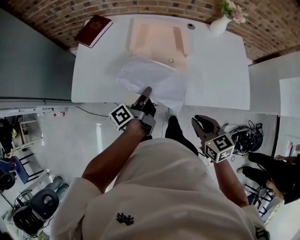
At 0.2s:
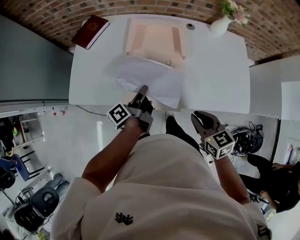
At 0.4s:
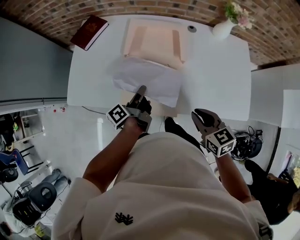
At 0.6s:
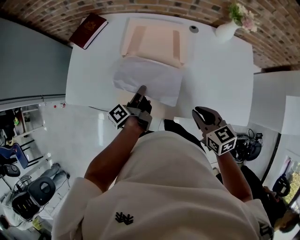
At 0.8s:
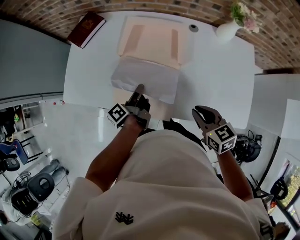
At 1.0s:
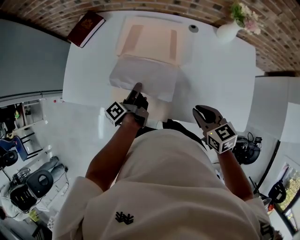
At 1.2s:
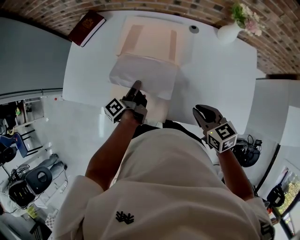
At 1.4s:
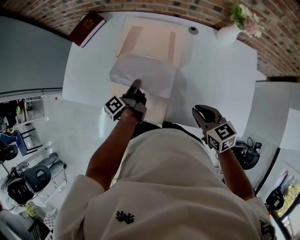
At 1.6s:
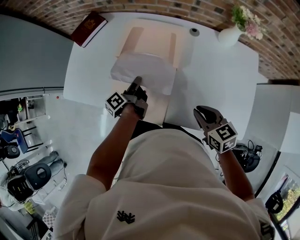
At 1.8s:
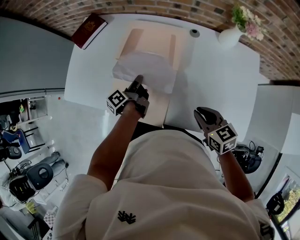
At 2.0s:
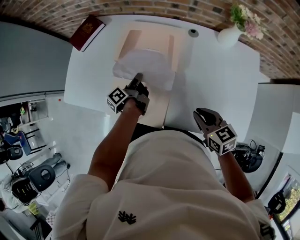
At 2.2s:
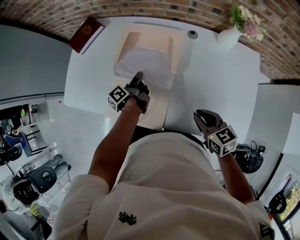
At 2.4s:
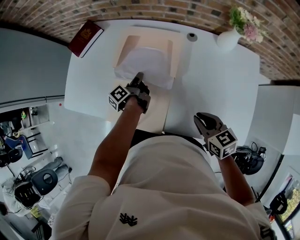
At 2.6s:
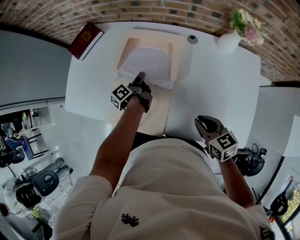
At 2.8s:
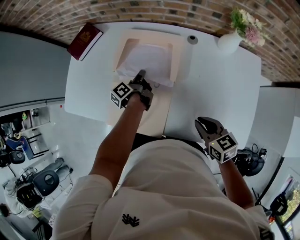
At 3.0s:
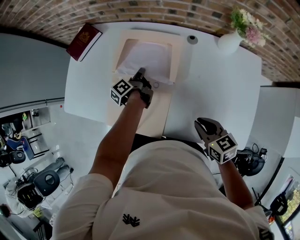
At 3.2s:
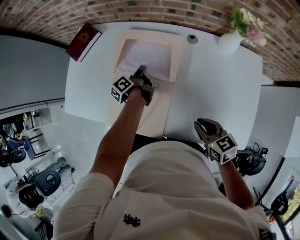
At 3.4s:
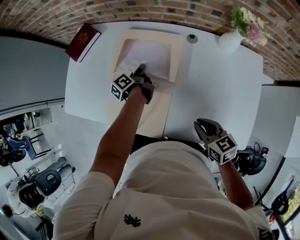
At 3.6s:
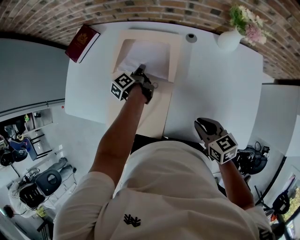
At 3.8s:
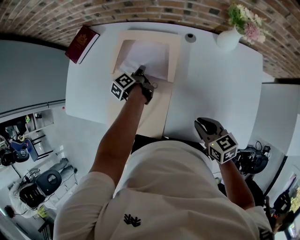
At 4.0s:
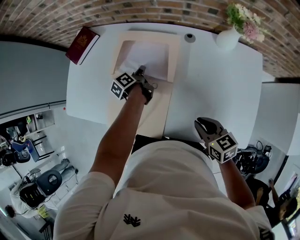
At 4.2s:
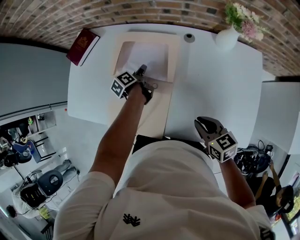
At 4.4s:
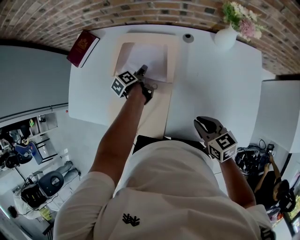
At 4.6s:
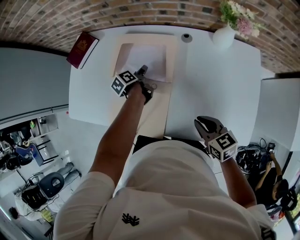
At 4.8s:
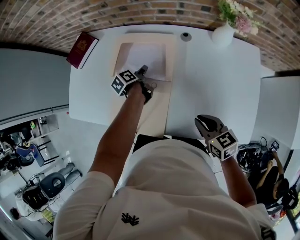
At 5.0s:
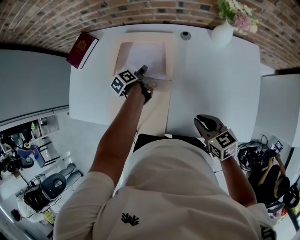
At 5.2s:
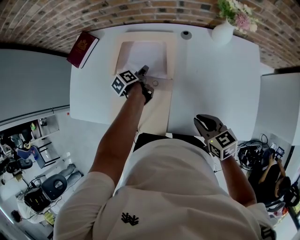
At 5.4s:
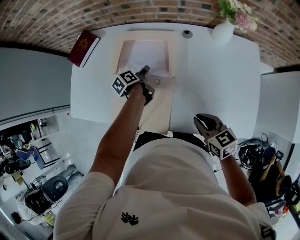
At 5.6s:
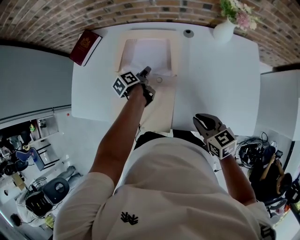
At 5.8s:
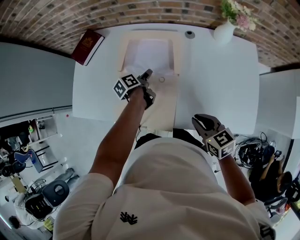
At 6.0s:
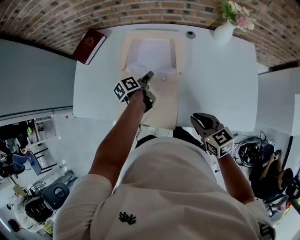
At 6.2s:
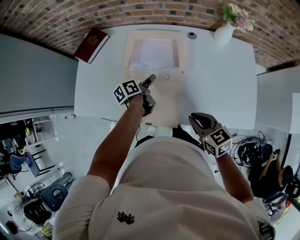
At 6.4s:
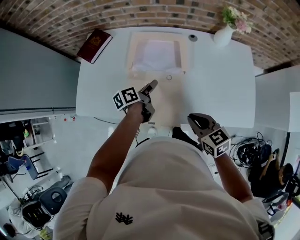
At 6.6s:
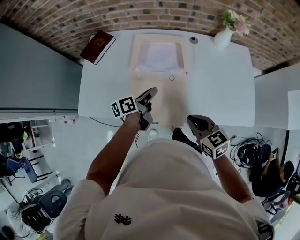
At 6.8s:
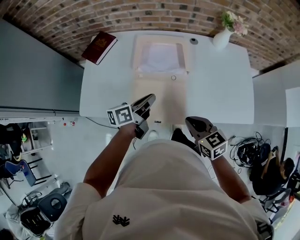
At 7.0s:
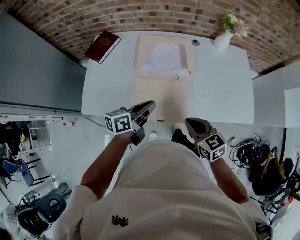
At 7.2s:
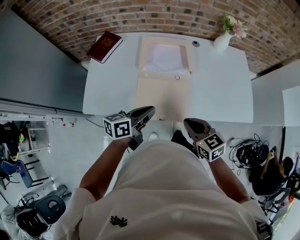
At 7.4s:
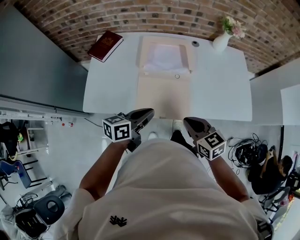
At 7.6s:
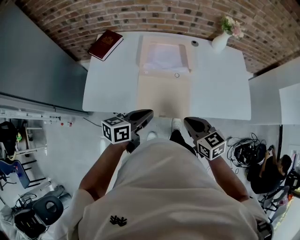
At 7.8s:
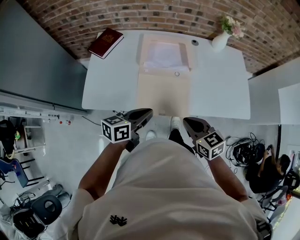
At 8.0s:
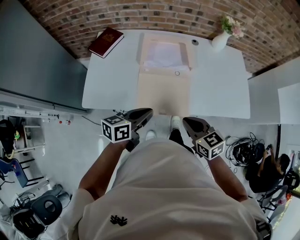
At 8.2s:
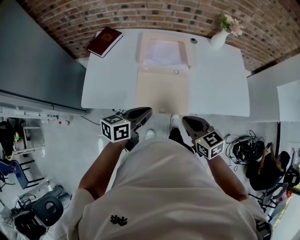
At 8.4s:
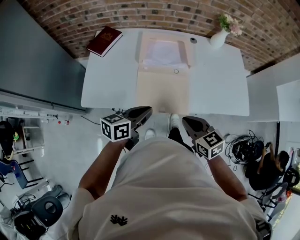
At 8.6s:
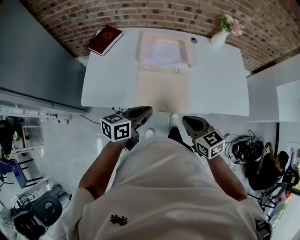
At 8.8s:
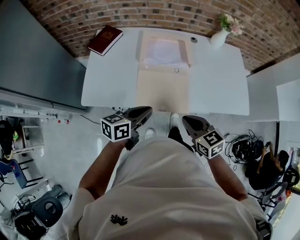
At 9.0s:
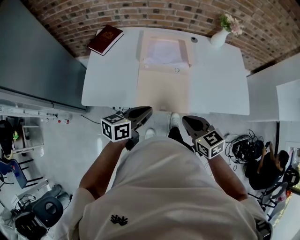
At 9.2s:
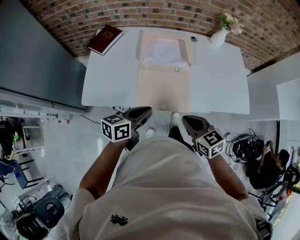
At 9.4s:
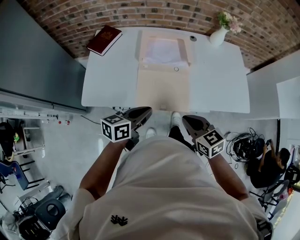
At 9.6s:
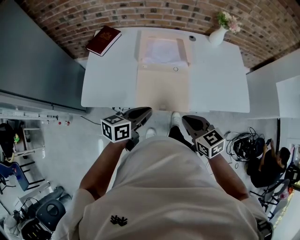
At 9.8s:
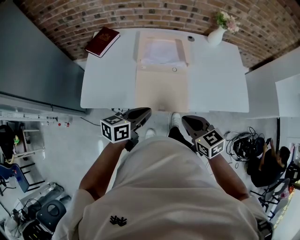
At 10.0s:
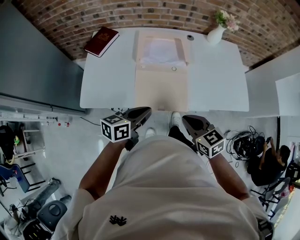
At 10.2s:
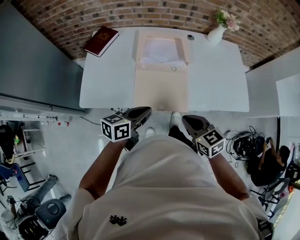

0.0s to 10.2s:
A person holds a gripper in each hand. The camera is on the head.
0.0s to 1.4s: The right gripper changes place by some 25 cm.
1.4s to 3.0s: The right gripper changes place by about 5 cm.
4.4s to 5.8s: The right gripper shifts by some 10 cm.
5.8s to 7.2s: The right gripper changes place by approximately 25 cm.
7.2s to 8.8s: The right gripper changes place by roughly 5 cm.

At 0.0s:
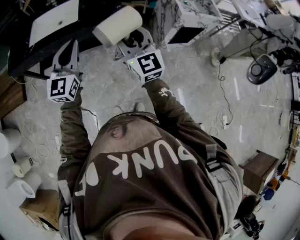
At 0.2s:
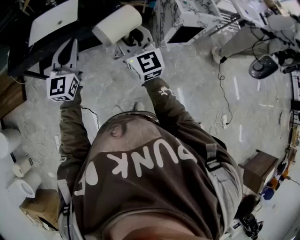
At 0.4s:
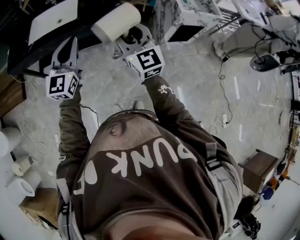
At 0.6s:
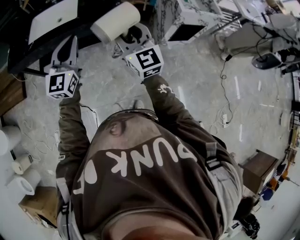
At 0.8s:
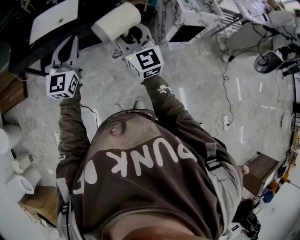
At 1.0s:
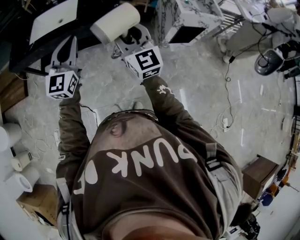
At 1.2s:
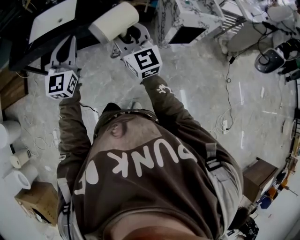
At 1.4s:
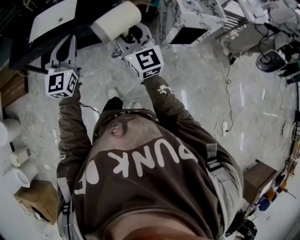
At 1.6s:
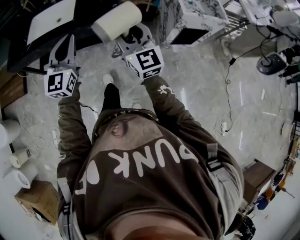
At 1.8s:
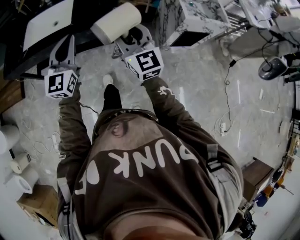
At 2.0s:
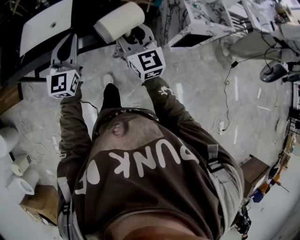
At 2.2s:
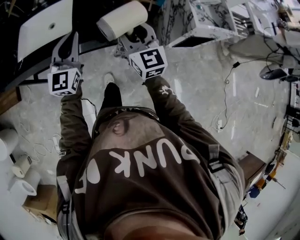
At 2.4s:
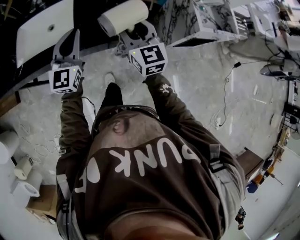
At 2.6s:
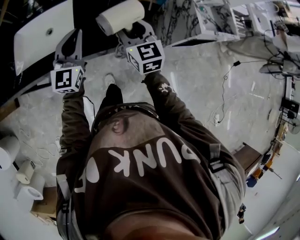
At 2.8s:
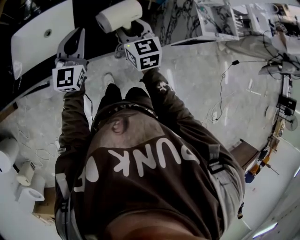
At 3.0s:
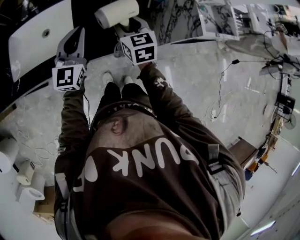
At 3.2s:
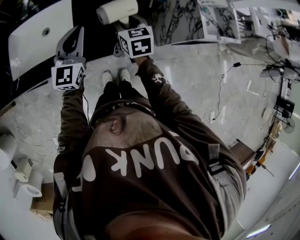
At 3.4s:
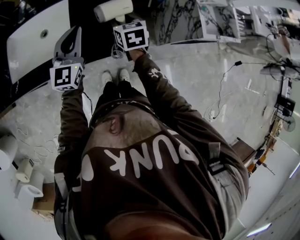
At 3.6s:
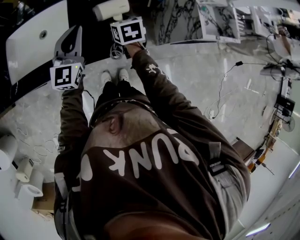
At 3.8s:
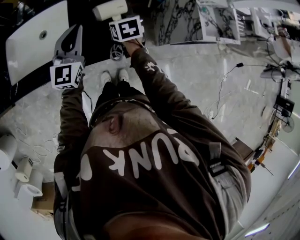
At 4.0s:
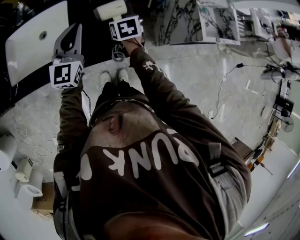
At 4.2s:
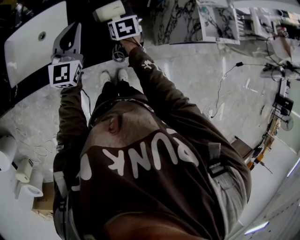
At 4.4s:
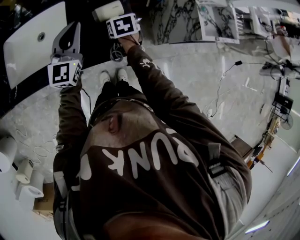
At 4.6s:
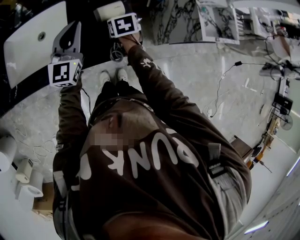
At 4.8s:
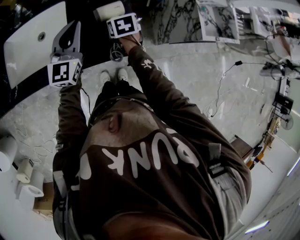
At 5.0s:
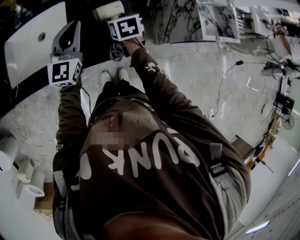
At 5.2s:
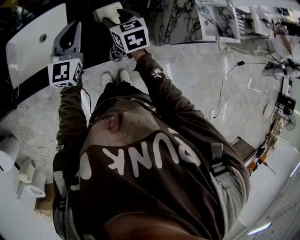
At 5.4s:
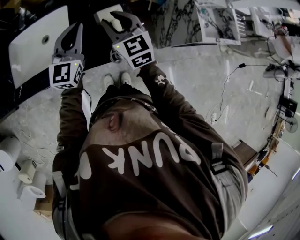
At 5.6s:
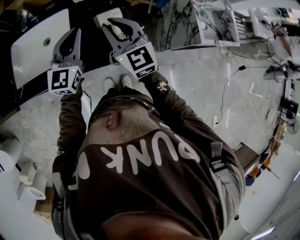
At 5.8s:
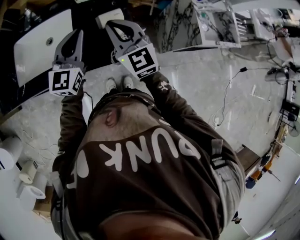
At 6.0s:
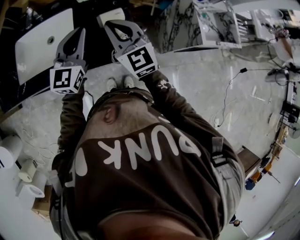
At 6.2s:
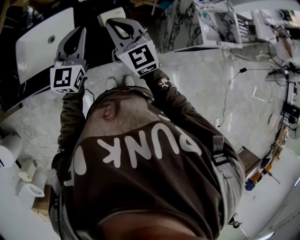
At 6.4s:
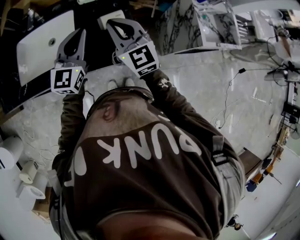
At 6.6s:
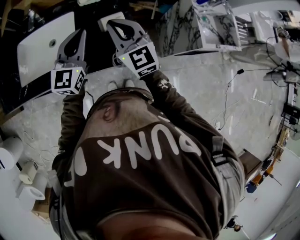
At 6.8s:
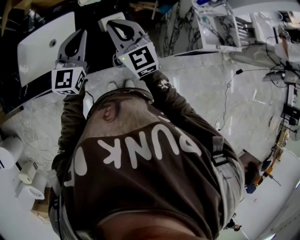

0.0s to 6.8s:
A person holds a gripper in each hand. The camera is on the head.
0.0s to 1.4s: The grippers both shift to the right by approximately 5 cm.
1.4s to 2.8s: Both grippers travel together forward, about 35 cm. The right gripper rotates roughly 30 degrees.
2.8s to 4.0s: The right gripper is displaced downward and forward by approximately 15 cm, and points its fingers roughly 30 degrees further downward. The left gripper travels forward by some 5 cm.
4.0s to 5.4s: The right gripper goes some 15 cm upward, angles its fingers upward, by about 40 degrees, and opens, then closes once more.
5.4s to 6.8s: The right gripper is displaced upward by about 5 cm, and closes its fingers.

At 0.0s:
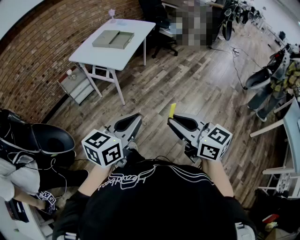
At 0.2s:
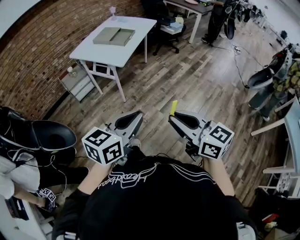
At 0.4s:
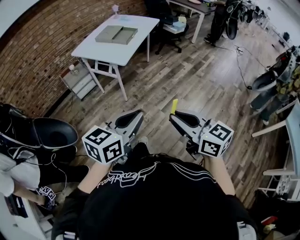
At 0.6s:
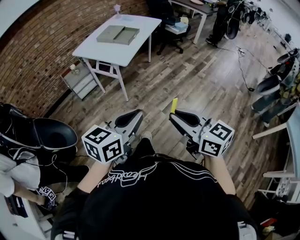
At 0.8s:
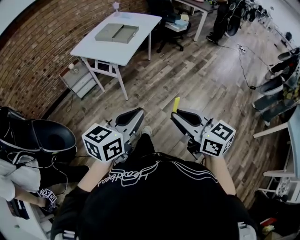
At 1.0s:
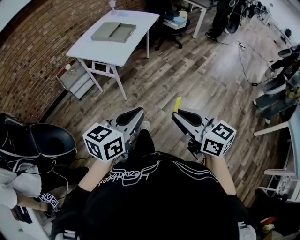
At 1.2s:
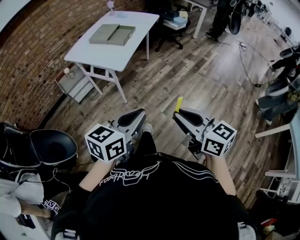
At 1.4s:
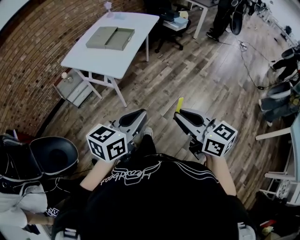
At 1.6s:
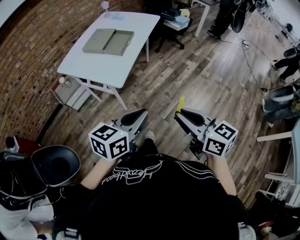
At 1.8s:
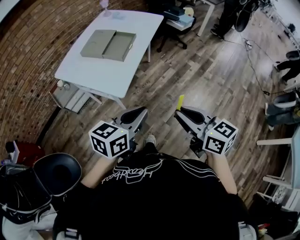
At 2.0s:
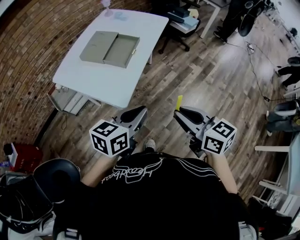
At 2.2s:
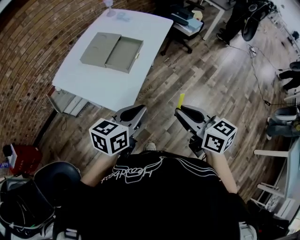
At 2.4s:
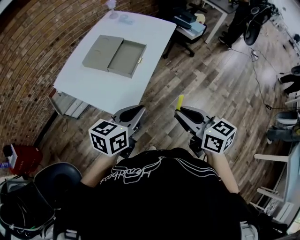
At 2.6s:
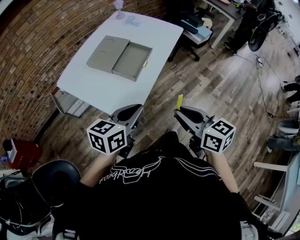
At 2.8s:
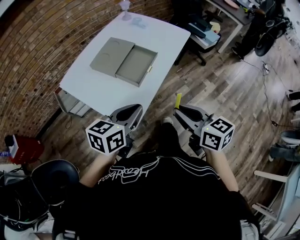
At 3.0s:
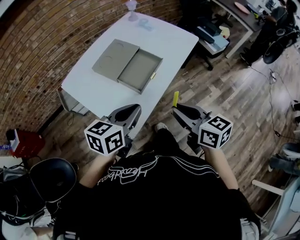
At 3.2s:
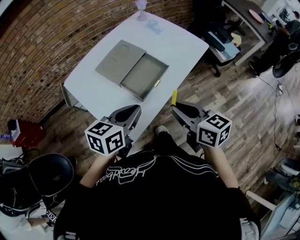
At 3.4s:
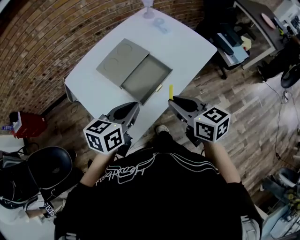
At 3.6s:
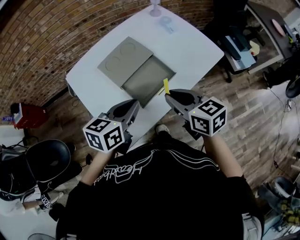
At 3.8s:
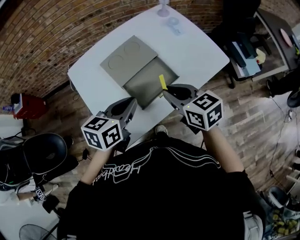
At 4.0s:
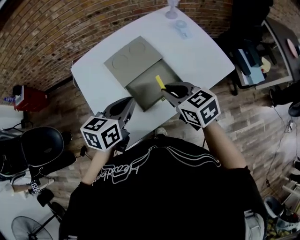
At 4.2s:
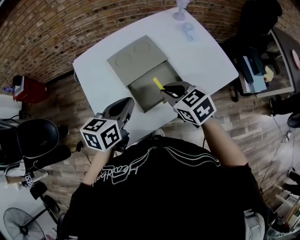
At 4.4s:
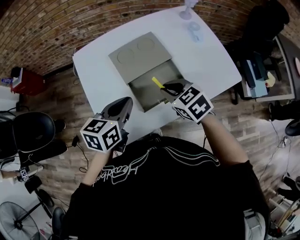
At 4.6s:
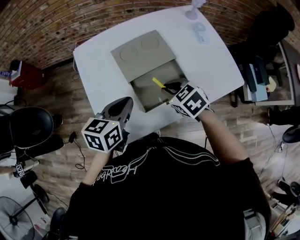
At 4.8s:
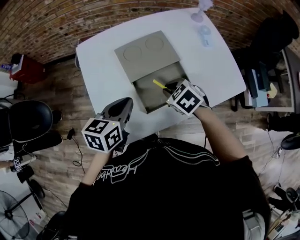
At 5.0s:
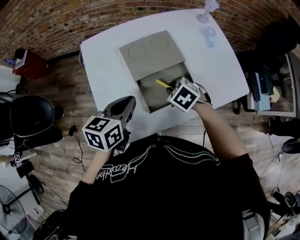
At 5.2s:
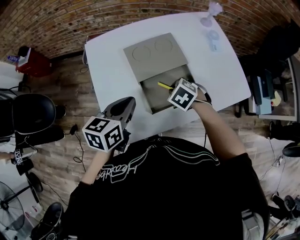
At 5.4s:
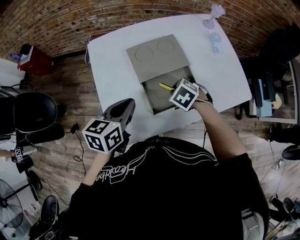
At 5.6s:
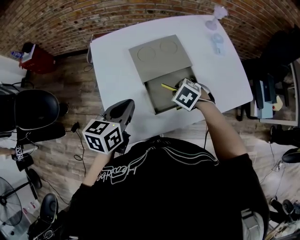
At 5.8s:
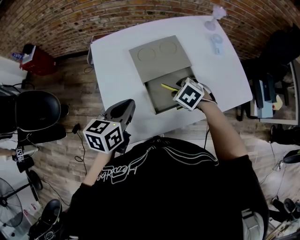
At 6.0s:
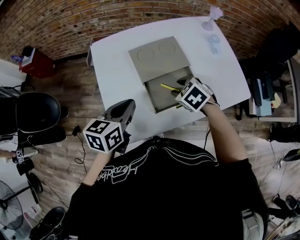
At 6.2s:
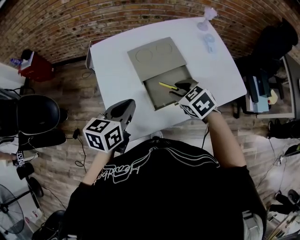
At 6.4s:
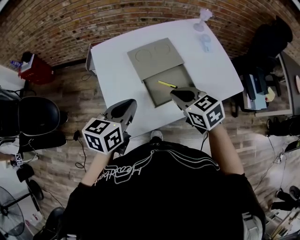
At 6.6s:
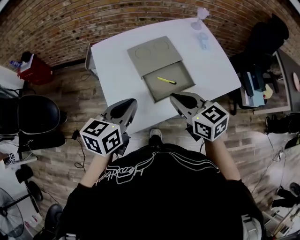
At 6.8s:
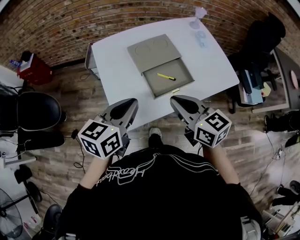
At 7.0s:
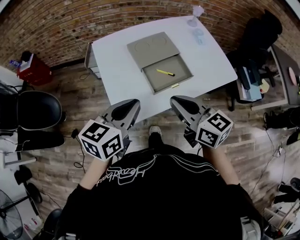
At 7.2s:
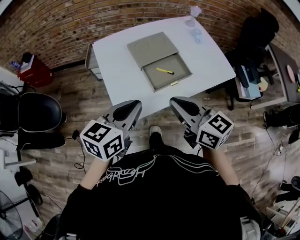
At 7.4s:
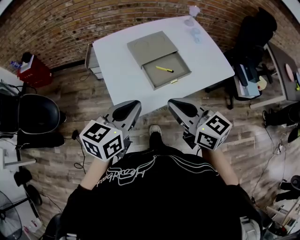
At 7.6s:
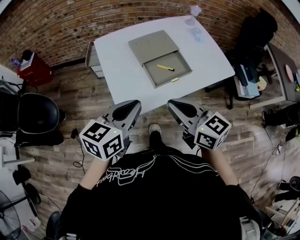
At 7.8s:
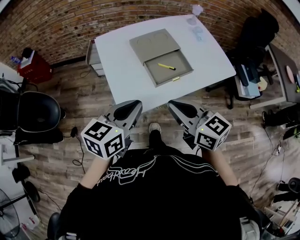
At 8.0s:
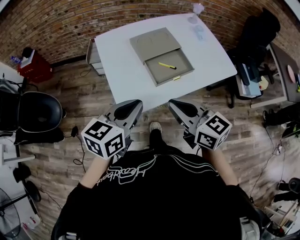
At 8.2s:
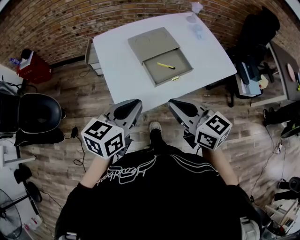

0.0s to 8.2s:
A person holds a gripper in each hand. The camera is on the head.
0.0s to 1.6s: The two grippers go about 25 cm forward.
1.6s to 3.2s: Both grippers travel together forward, some 40 cm. The left gripper swivels roughly 30 degrees. The right gripper rotates some 20 degrees.
3.2s to 5.0s: The right gripper changes place by some 30 cm, and tips its fingers downward by about 50 degrees, while the left gripper changes place by approximately 15 cm, and swivels roughly 40 degrees.
5.0s to 6.6s: The left gripper shifts some 10 cm upward and backward. The right gripper is displaced upward and backward by some 20 cm, angles its fingers upward, by some 40 degrees, and opens, then closes again.
6.6s to 8.2s: Both grippers travel together backward, approximately 10 cm.
